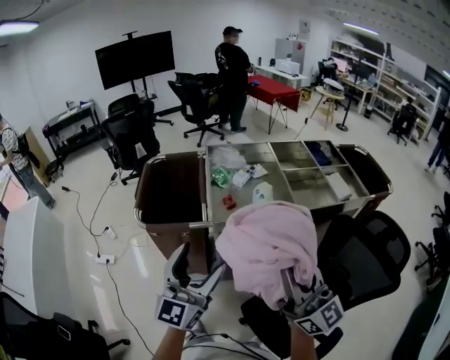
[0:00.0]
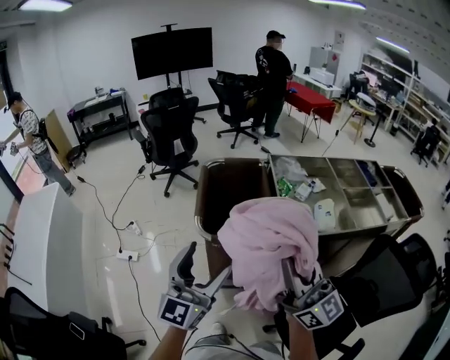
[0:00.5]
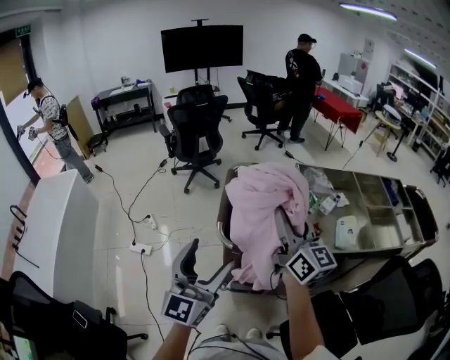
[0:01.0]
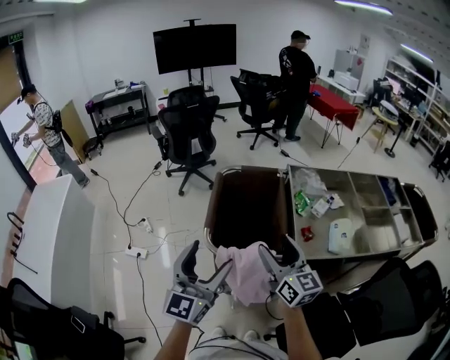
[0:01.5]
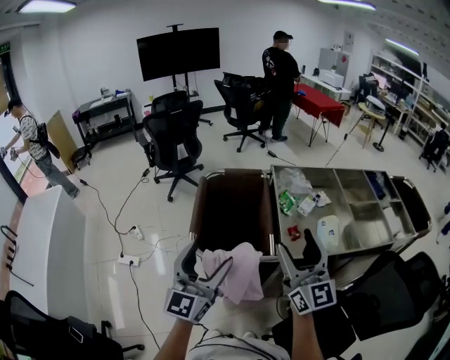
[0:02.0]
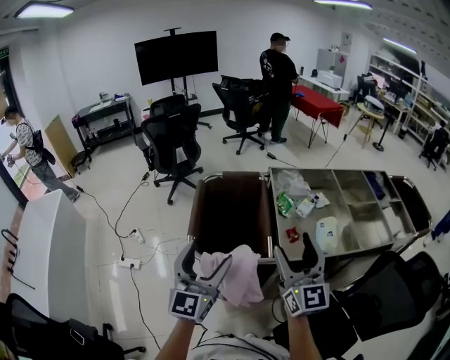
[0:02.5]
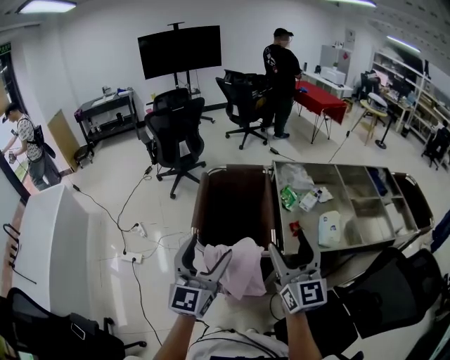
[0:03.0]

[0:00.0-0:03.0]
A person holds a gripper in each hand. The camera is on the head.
0:00.0 to 0:01.5: The right gripper travels forward and to the left by roughly 40 cm, changes its angle by about 20 degrees, and opens. Meanwhile the left gripper shifts about 30 cm to the left and forward.
0:01.5 to 0:03.0: The right gripper travels to the right and upward by about 10 cm, and swivels approximately 20 degrees. Meanwhile the left gripper ends up about 5 cm from where it was.

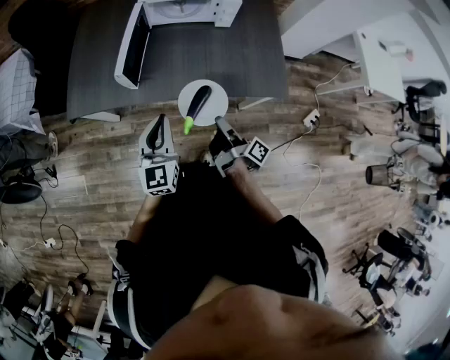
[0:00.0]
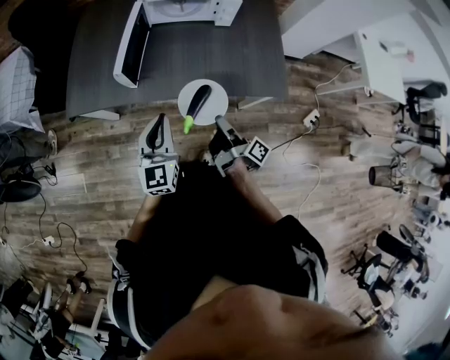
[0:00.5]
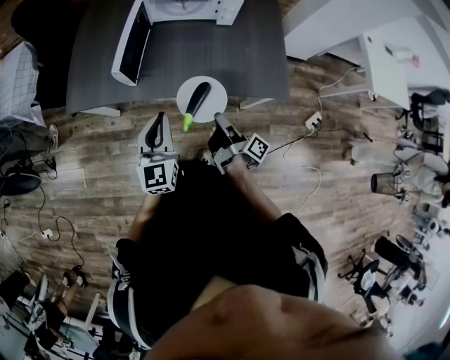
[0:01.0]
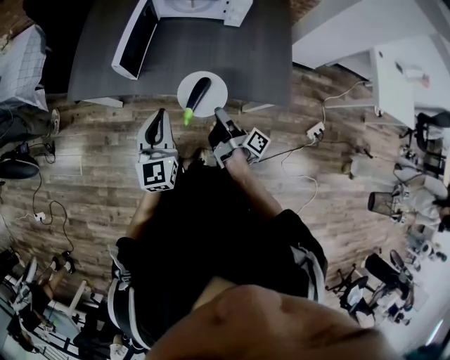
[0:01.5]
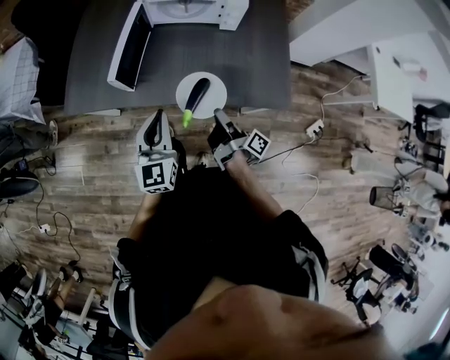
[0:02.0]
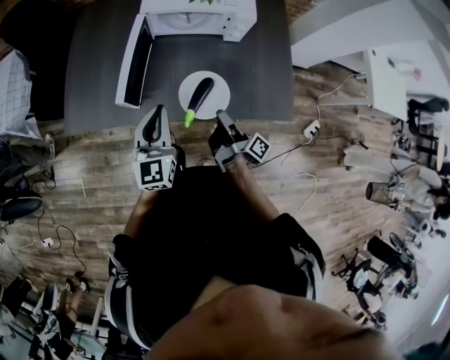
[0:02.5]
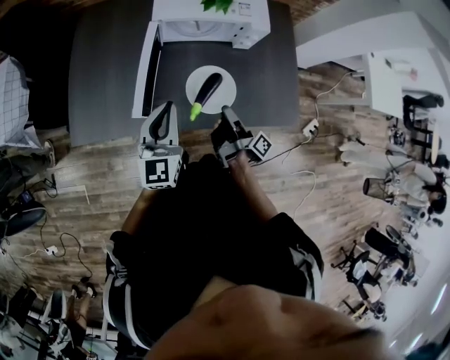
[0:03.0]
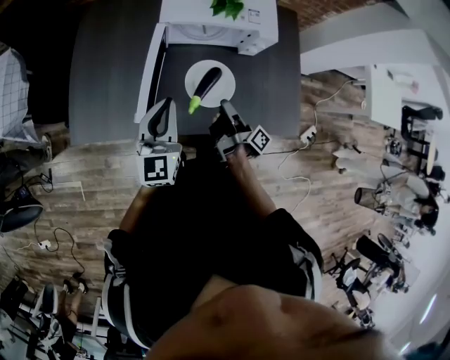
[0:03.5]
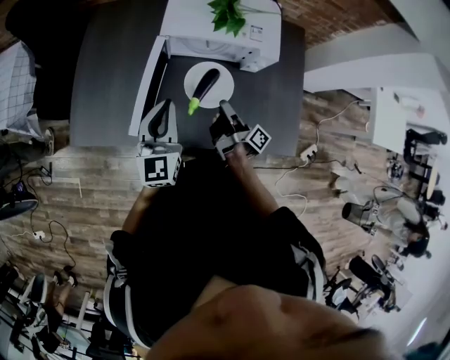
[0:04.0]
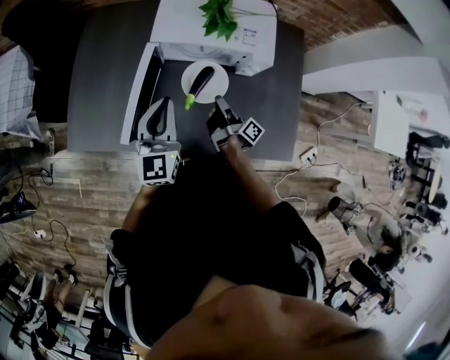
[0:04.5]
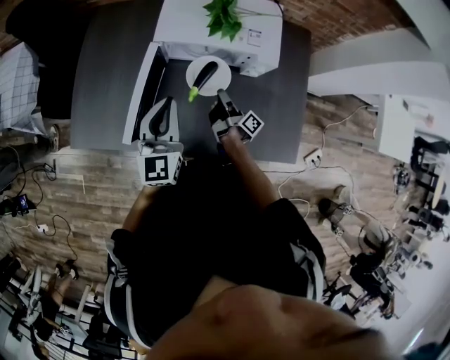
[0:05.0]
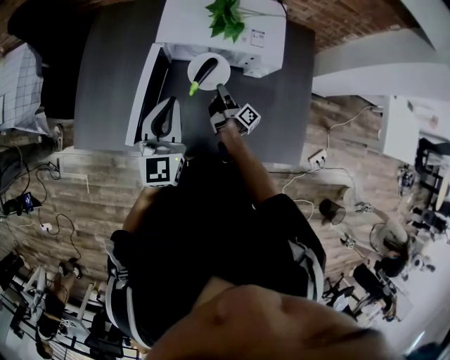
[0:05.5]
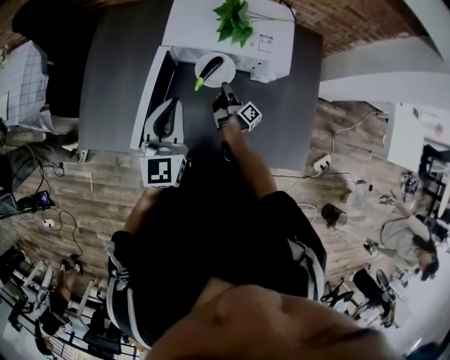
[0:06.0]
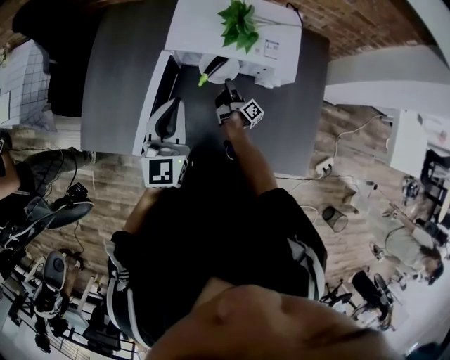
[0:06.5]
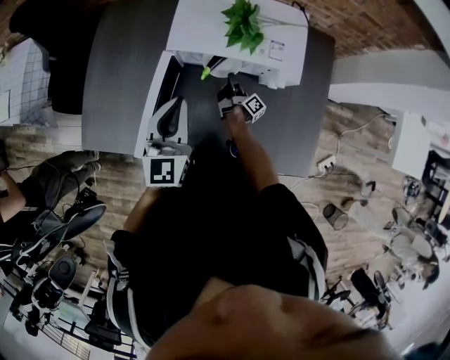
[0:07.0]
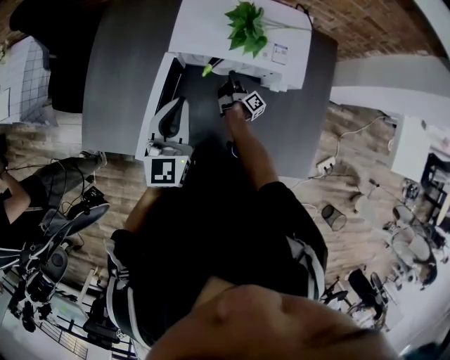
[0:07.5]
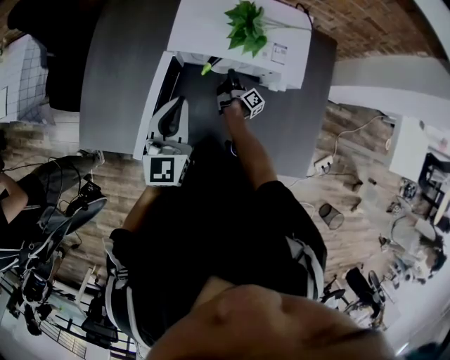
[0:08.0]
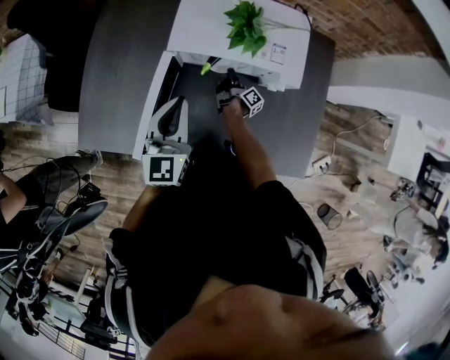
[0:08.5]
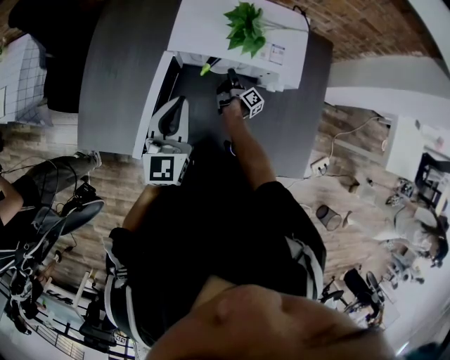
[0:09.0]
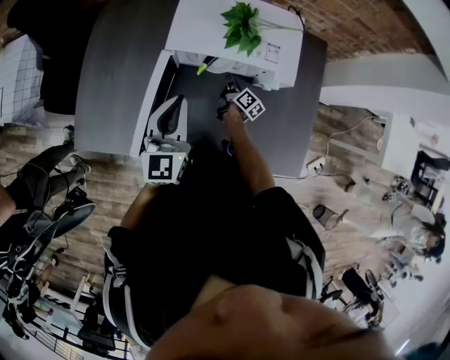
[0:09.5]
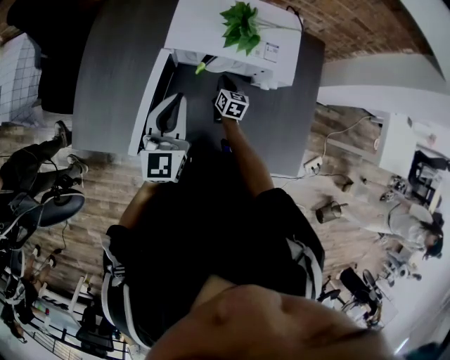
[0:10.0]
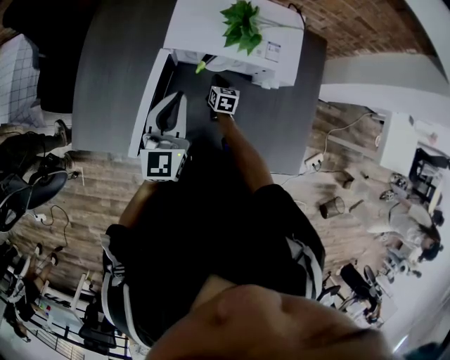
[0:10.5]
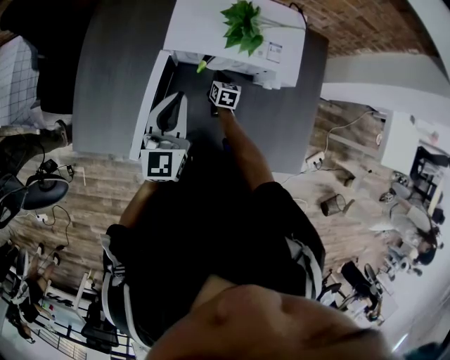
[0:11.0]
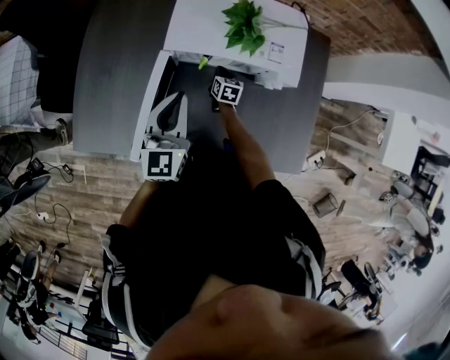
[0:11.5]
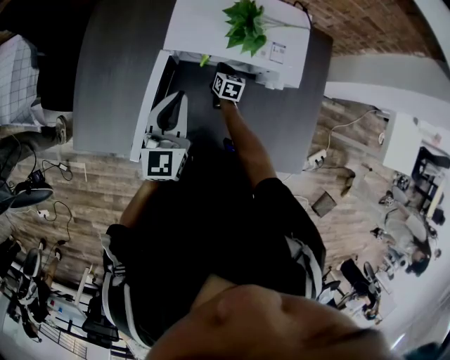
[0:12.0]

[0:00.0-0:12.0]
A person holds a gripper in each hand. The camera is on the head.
0:00.0 to 0:02.0: The left gripper changes place by approximately 5 cm.
0:02.0 to 0:04.0: The left gripper changes place by about 25 cm.
0:04.0 to 0:06.0: The left gripper changes place by about 5 cm.
0:06.0 to 0:08.0: The left gripper changes place by approximately 5 cm.

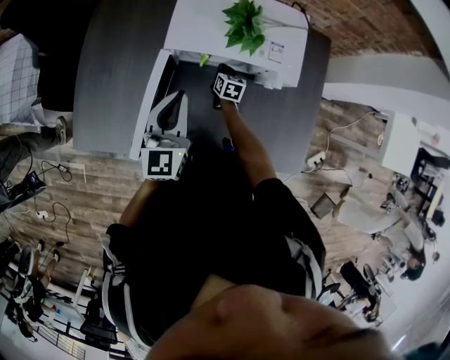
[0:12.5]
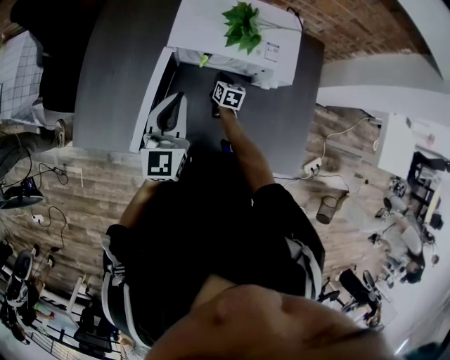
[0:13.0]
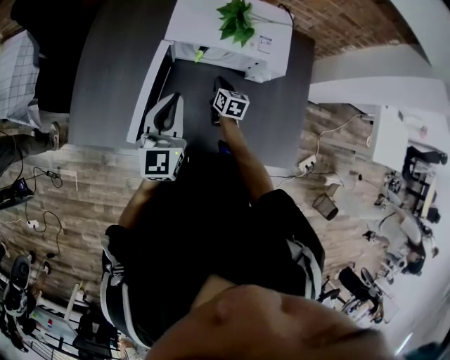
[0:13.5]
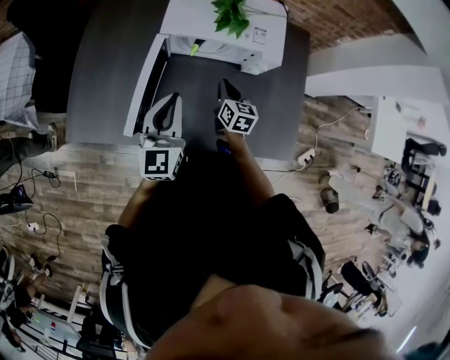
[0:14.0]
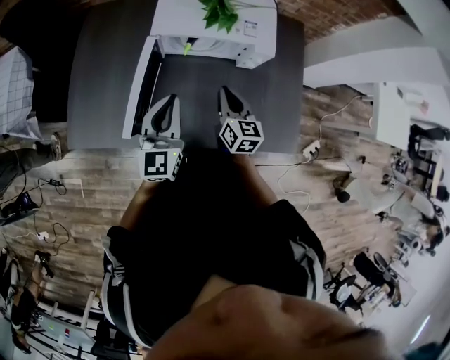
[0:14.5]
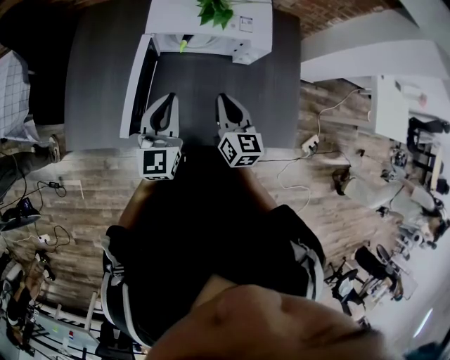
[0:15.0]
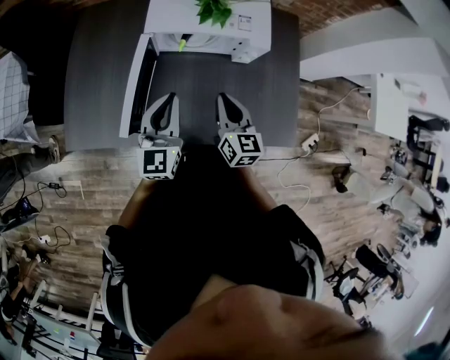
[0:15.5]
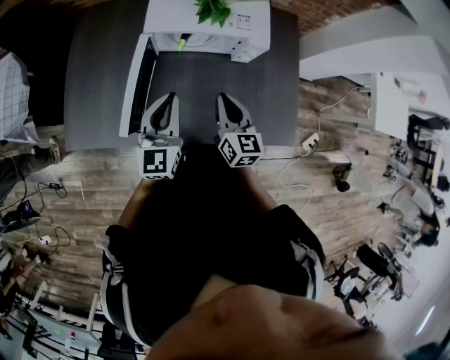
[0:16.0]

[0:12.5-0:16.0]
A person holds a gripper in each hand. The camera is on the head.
0:12.5 to 0:14.5: The left gripper moves approximately 10 cm.

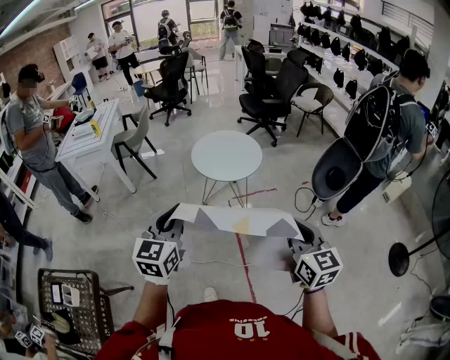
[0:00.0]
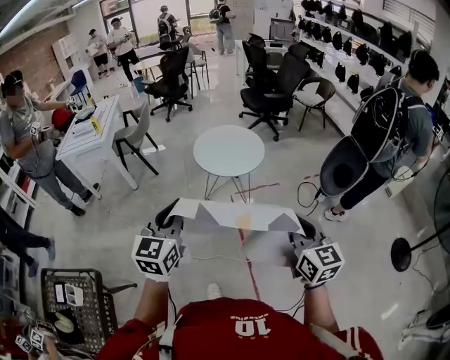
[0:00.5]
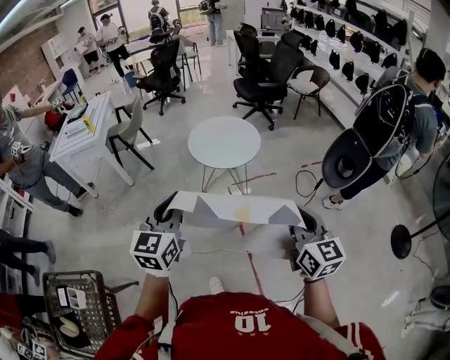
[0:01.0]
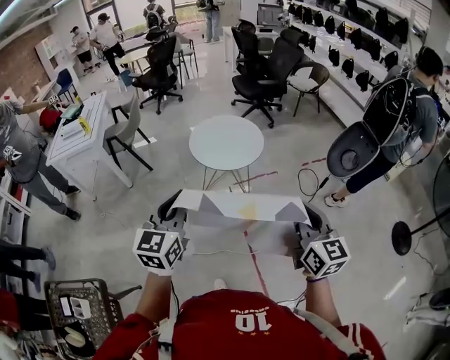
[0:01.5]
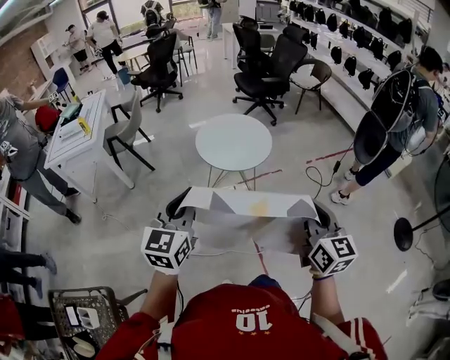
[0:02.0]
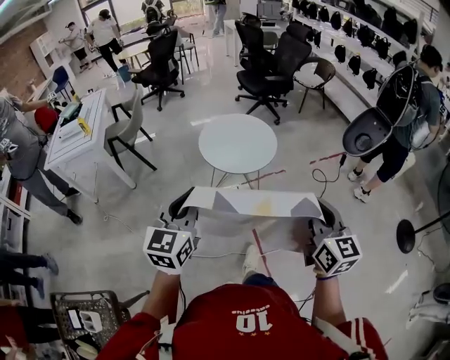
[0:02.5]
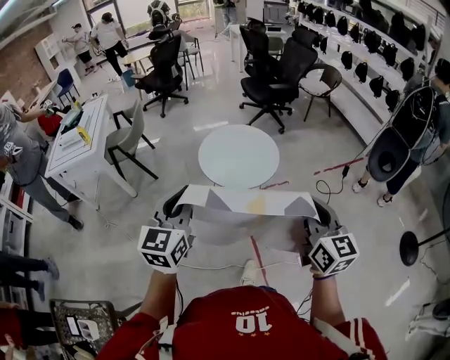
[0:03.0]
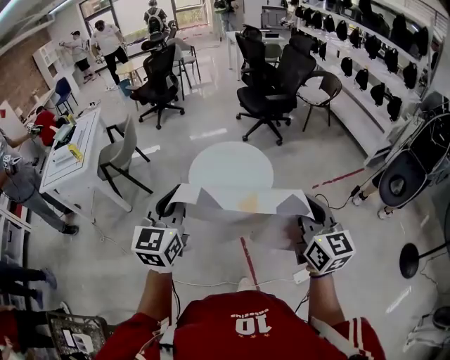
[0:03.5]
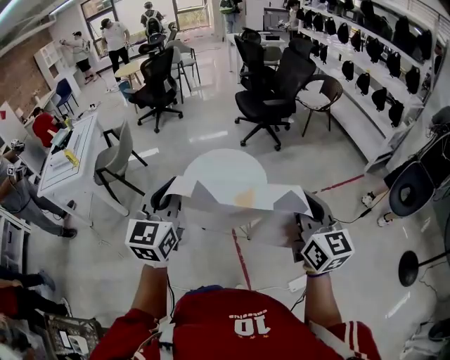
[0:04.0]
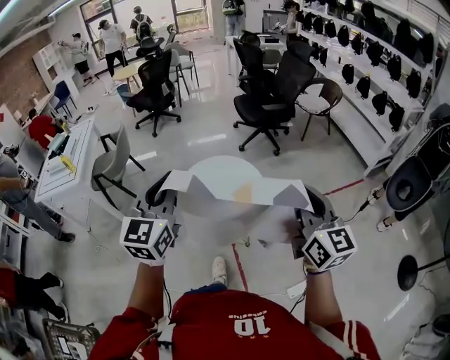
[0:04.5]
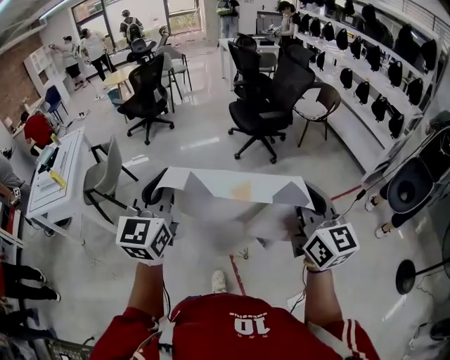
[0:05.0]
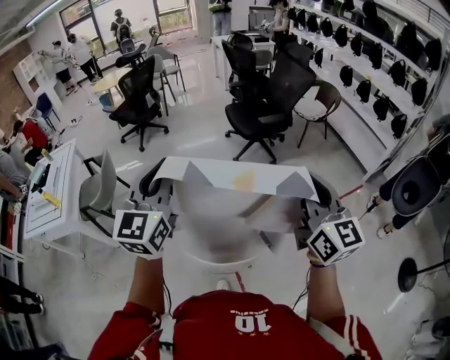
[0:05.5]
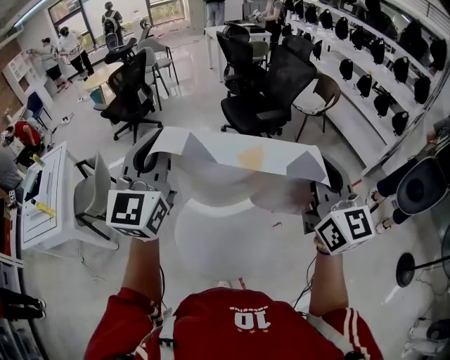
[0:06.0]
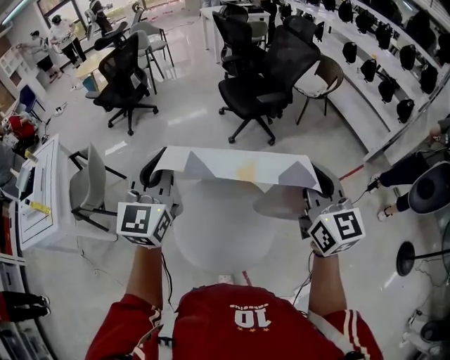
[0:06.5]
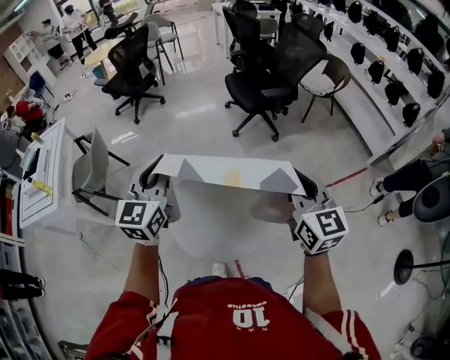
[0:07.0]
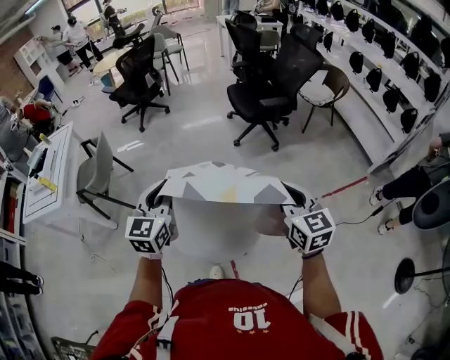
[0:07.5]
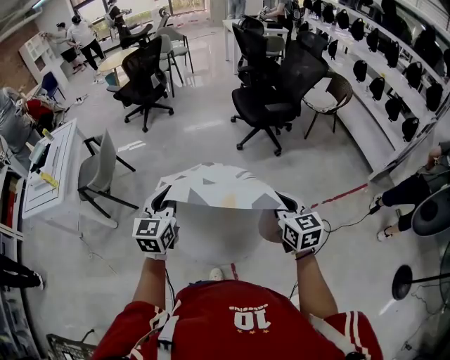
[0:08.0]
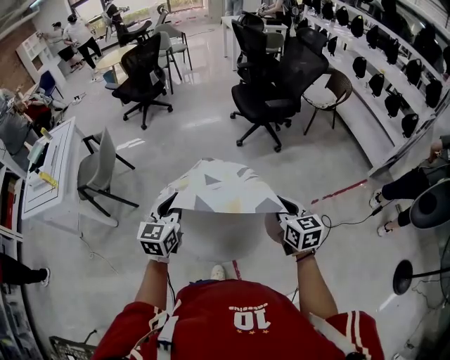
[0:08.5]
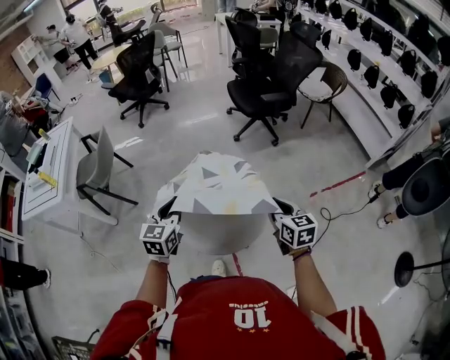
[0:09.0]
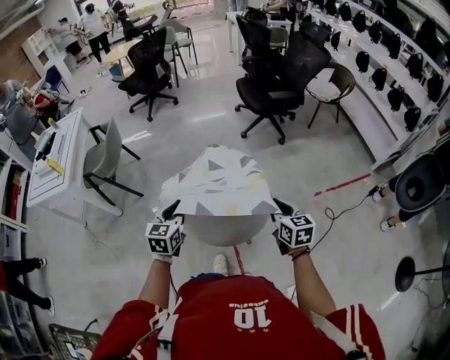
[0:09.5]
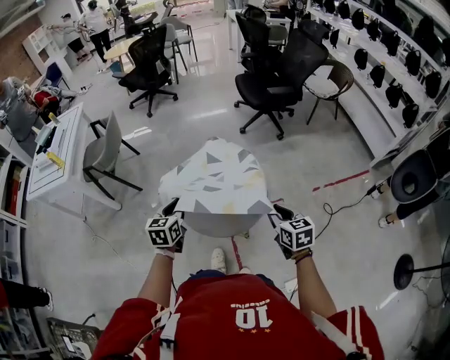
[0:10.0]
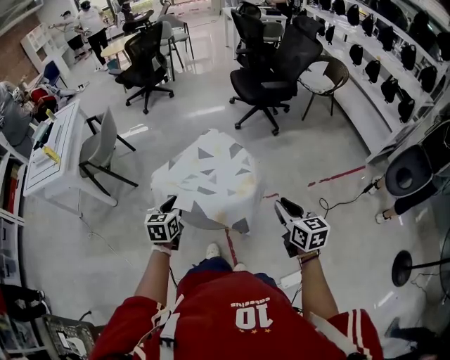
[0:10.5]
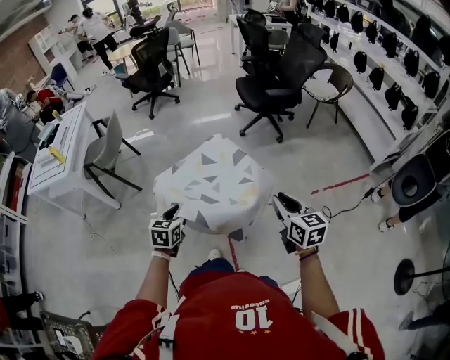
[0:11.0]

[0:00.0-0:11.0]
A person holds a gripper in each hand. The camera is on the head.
0:00.0 to 0:02.0: The grippers both shift forward and to the left by about 10 cm.
0:02.0 to 0:03.5: Both grippers travel together forward, roughly 25 cm.
0:03.5 to 0:05.5: Both grippers move forward, some 35 cm.
0:05.5 to 0:07.5: Both grippers move downward, some 15 cm. The right gripper swivels approximately 20 degrees.
0:07.5 to 0:09.0: The grippers both shift downward by about 15 cm.
0:09.0 to 0:11.0: The left gripper heads backward and downward, covering approximately 15 cm, and opens. The right gripper travels backward by some 10 cm.
